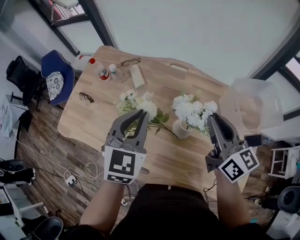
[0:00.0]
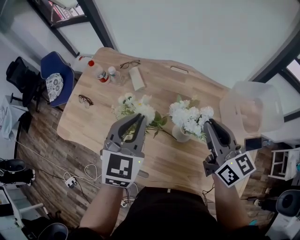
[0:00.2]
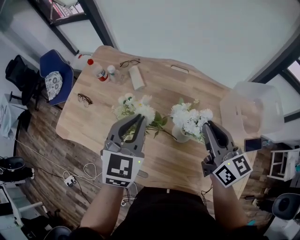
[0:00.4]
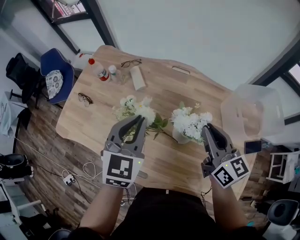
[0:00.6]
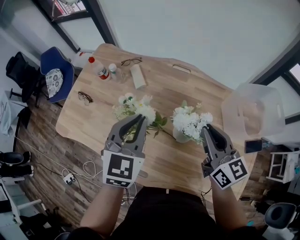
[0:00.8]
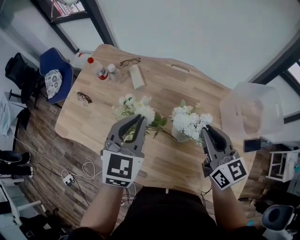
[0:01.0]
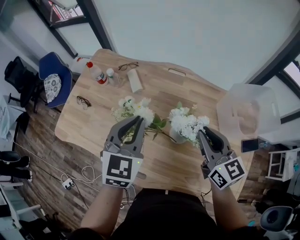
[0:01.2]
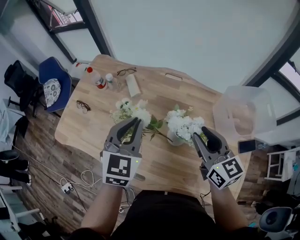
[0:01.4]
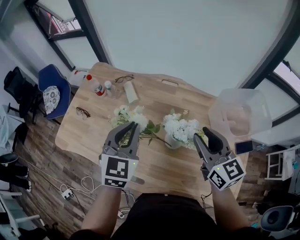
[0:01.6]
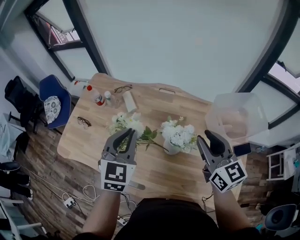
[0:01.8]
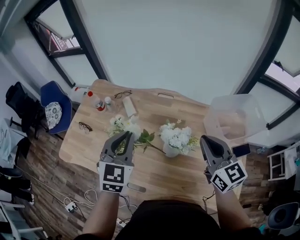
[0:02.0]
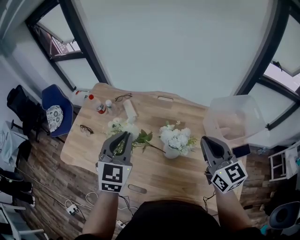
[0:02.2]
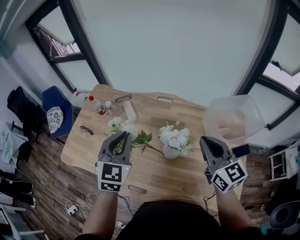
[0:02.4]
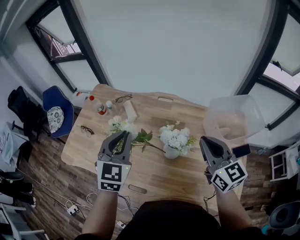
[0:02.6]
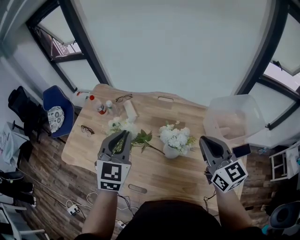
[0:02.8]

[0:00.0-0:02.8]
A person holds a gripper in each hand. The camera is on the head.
0.0 to 1.4 s: The grippers make only small movements.
1.4 to 2.8 s: The two grippers go roughly 5 cm upward. The right gripper closes.

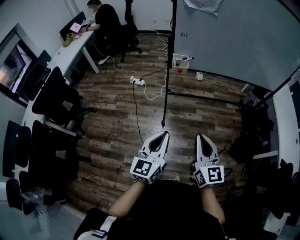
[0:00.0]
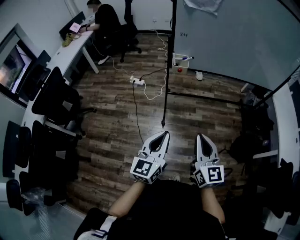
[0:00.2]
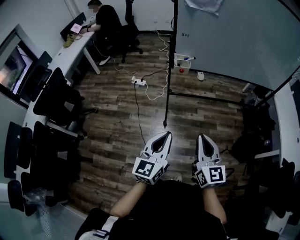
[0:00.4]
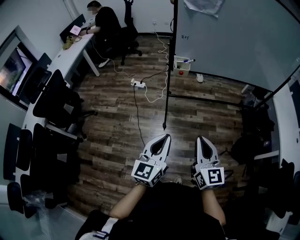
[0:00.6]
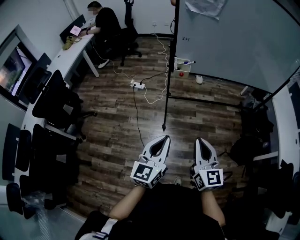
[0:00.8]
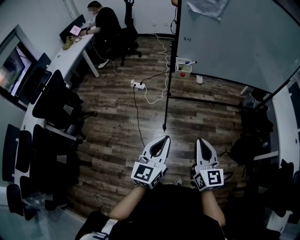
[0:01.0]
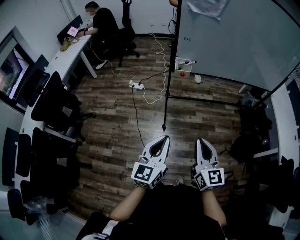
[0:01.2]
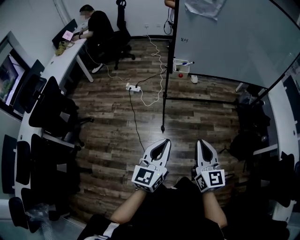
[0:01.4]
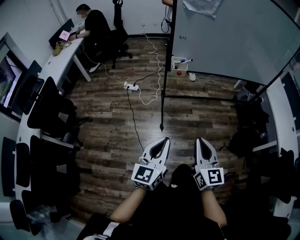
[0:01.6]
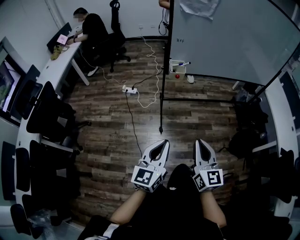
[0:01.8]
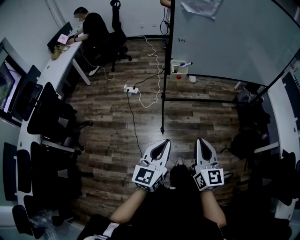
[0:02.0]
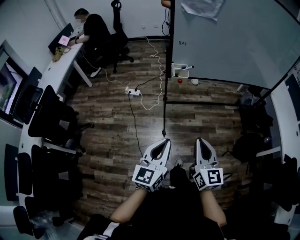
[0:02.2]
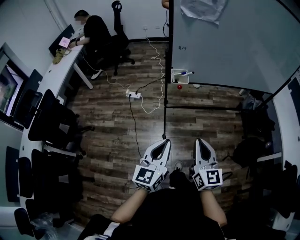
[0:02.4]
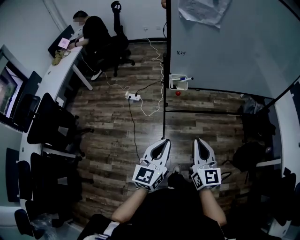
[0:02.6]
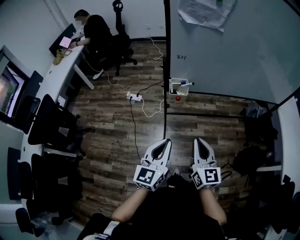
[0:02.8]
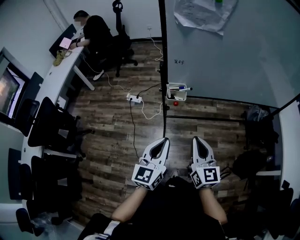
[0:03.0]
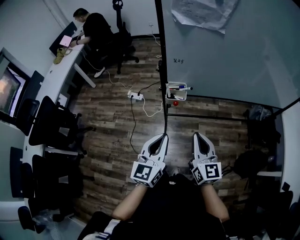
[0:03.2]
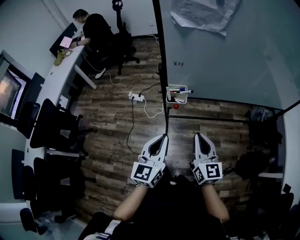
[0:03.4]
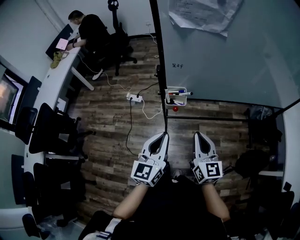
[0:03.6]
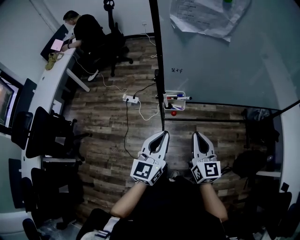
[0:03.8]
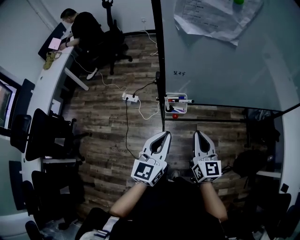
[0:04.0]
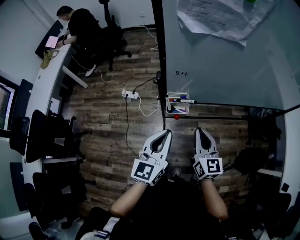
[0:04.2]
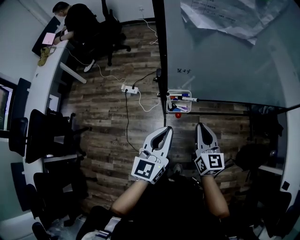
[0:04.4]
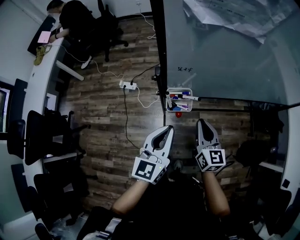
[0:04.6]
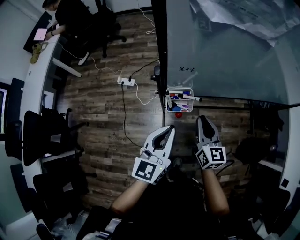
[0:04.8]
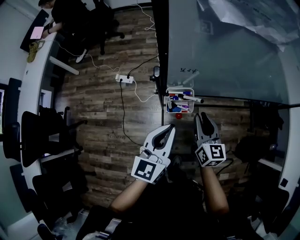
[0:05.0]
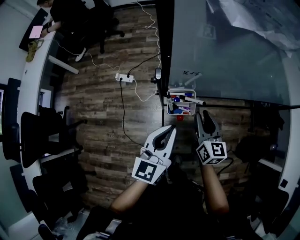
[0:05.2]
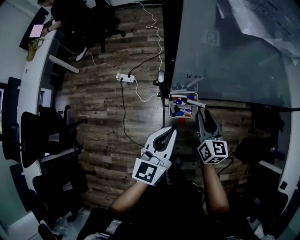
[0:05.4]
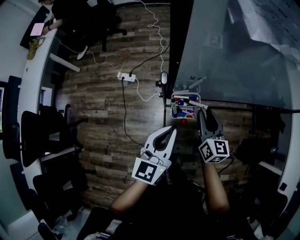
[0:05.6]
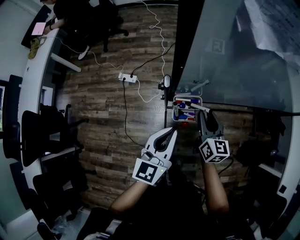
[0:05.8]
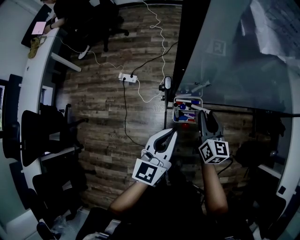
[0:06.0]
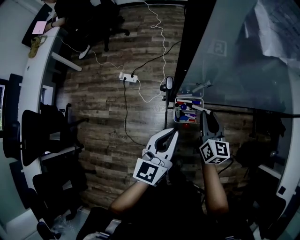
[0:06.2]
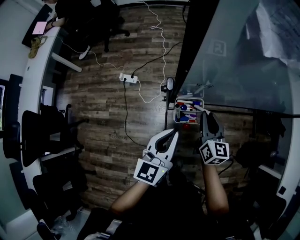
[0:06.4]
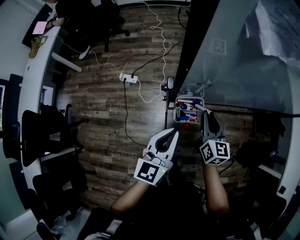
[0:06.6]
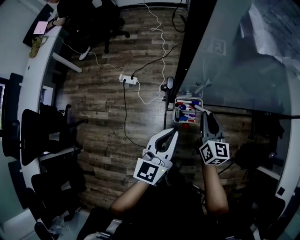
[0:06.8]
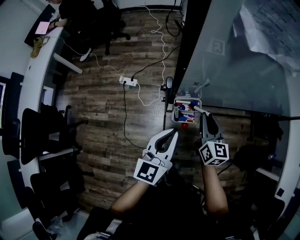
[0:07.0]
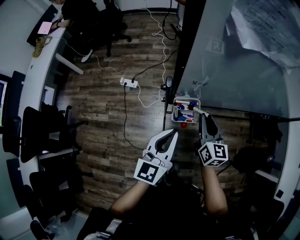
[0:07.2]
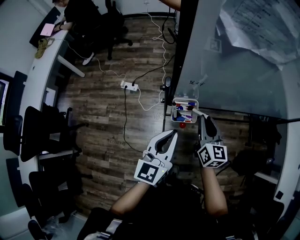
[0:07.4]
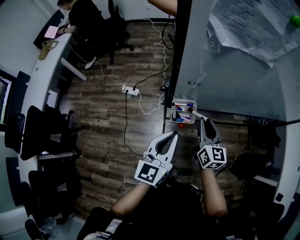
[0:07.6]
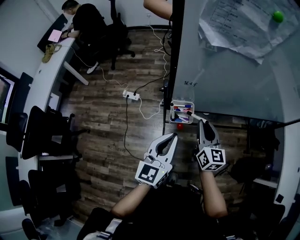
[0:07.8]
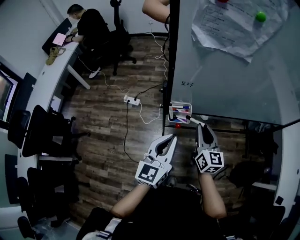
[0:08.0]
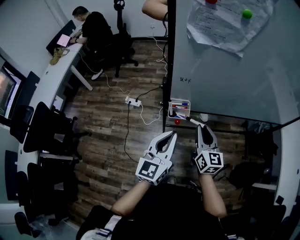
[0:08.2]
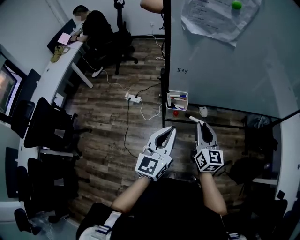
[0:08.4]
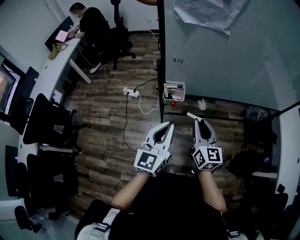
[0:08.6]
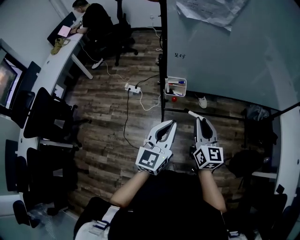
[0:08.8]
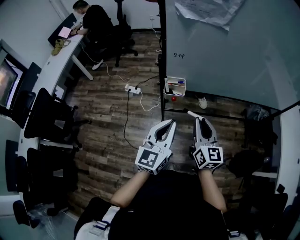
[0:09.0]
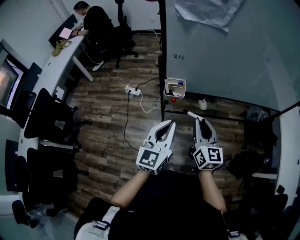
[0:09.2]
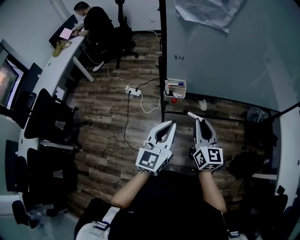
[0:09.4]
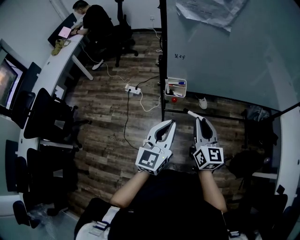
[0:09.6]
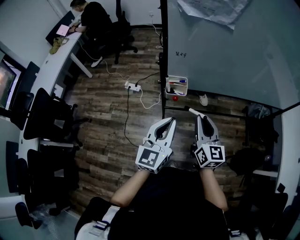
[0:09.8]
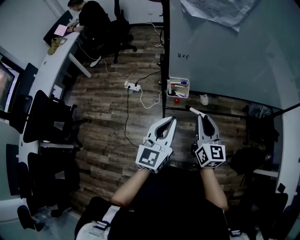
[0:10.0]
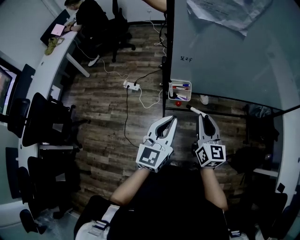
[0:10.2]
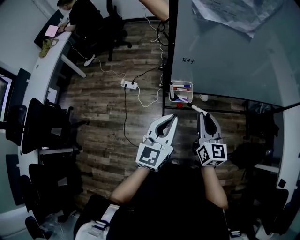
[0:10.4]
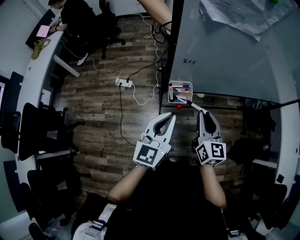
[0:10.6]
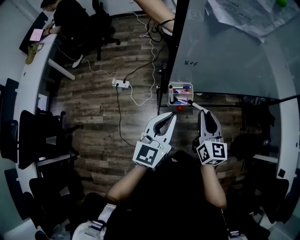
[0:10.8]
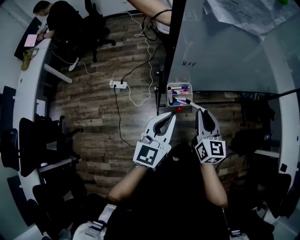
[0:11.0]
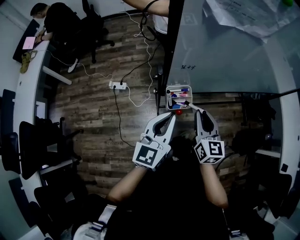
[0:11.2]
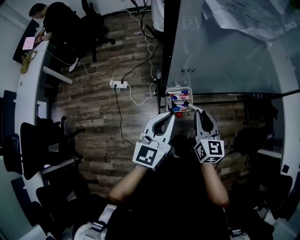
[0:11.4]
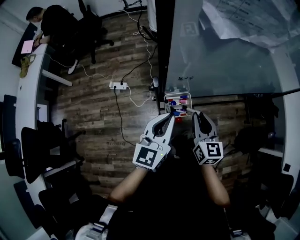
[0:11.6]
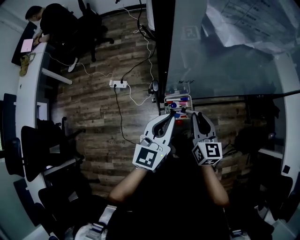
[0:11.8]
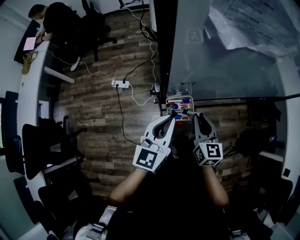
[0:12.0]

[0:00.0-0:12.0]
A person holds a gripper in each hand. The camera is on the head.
0.0 to 1.6 s: Both grippers travel together to the left, some 5 cm.
1.6 to 3.0 s: Both grippers move forward, about 25 cm.
3.0 to 4.4 s: Both grippers move forward, roughly 20 cm.
4.4 to 6.0 s: The left gripper moves forward and downward, some 10 cm. The right gripper heads forward and downward, covering some 15 cm, and opens.
6.0 to 7.6 s: The left gripper moves some 5 cm, while the right gripper shifts some 5 cm upward.
7.6 to 9.0 s: The right gripper is displaced backward by approximately 15 cm. Meanwhile the left gripper goes some 15 cm backward and to the right.
9.0 to 10.4 s: The two grippers go approximately 10 cm forward.
10.4 to 12.0 s: The left gripper is displaced forward by approximately 10 cm, while the right gripper moves forward and downward, approximately 10 cm.

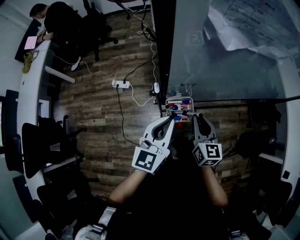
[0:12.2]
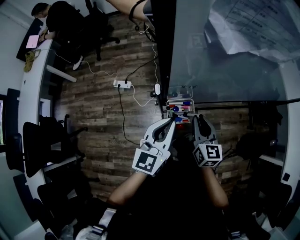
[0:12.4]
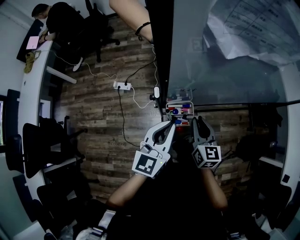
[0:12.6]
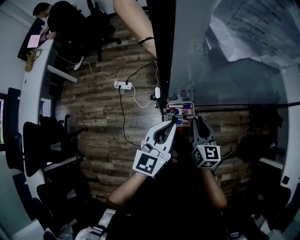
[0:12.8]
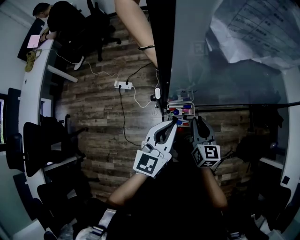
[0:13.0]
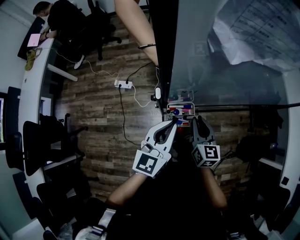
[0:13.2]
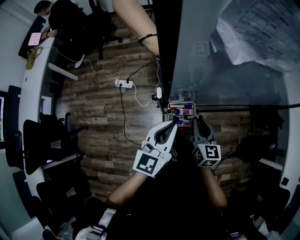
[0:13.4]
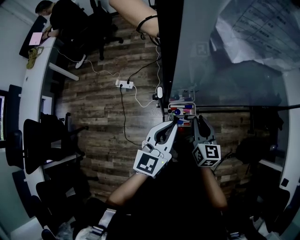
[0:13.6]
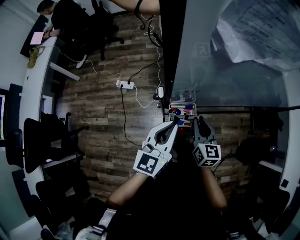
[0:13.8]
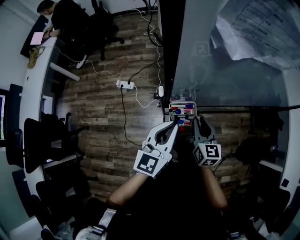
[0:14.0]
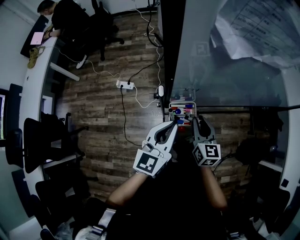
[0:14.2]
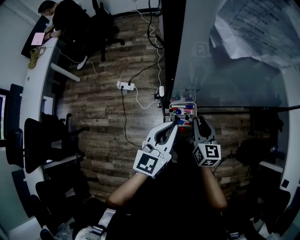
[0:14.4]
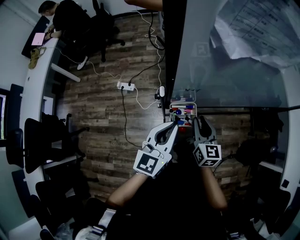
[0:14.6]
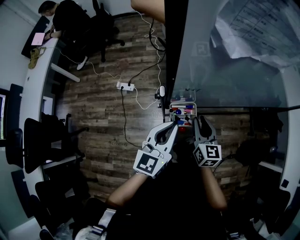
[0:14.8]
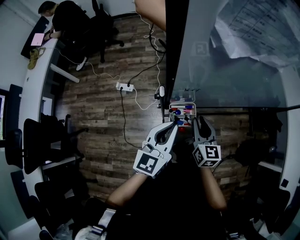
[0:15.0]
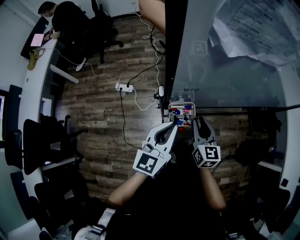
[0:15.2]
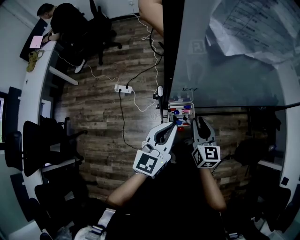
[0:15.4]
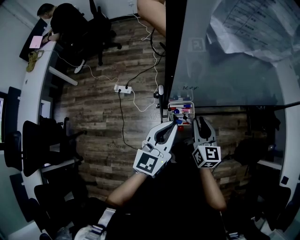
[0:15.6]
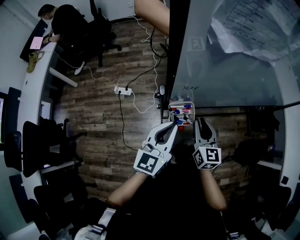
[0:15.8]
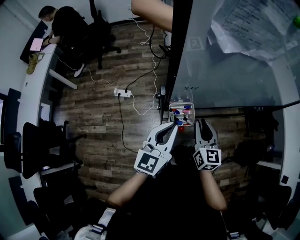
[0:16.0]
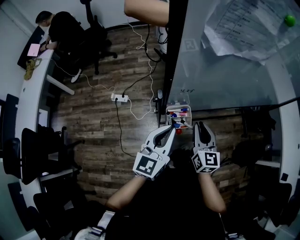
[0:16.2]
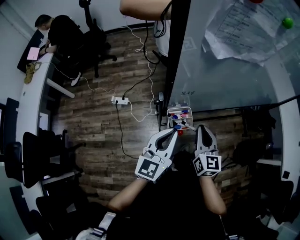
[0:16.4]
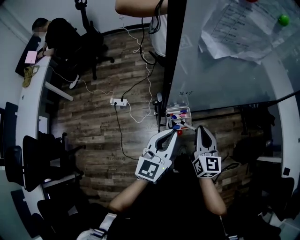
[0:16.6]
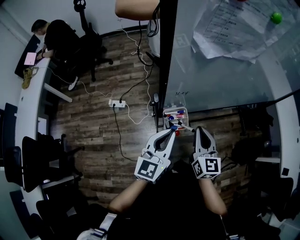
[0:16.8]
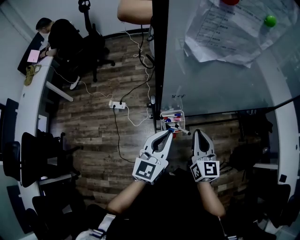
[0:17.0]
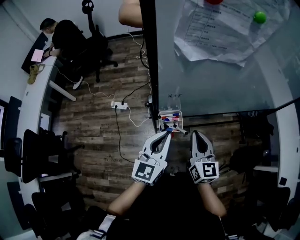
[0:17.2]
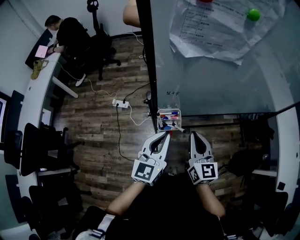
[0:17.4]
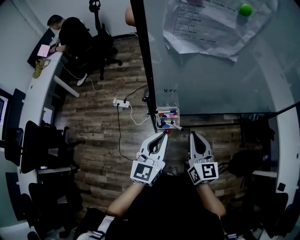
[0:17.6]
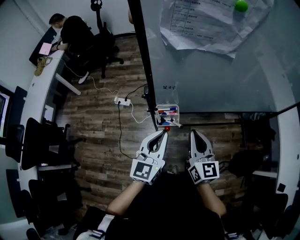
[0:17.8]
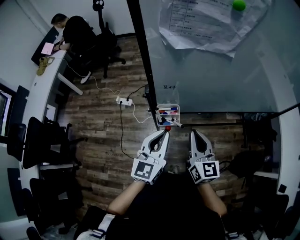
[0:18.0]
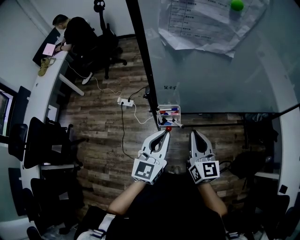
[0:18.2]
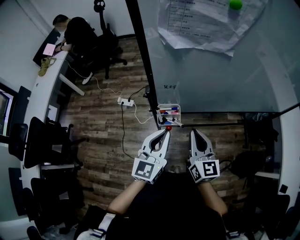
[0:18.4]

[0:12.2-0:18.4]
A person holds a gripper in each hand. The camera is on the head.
12.2 to 15.4 s: There are only small adjustments of the grippers.
15.4 to 16.8 s: The right gripper shifts about 5 cm upward.
16.8 to 18.4 s: The left gripper moves about 5 cm, while the right gripper ends up roughly 5 cm from where it was.

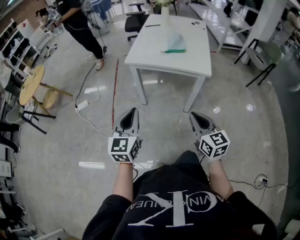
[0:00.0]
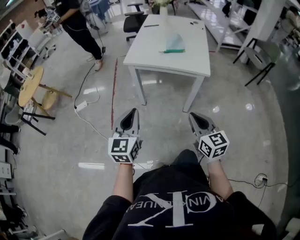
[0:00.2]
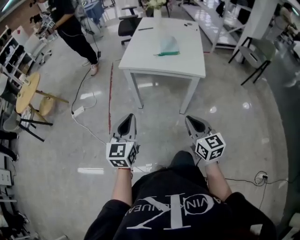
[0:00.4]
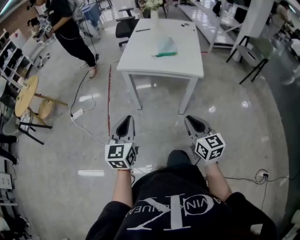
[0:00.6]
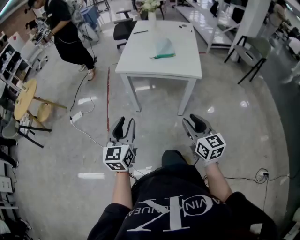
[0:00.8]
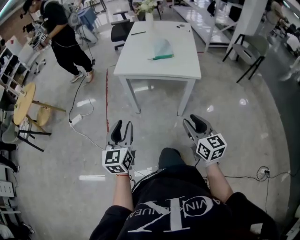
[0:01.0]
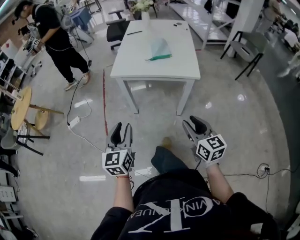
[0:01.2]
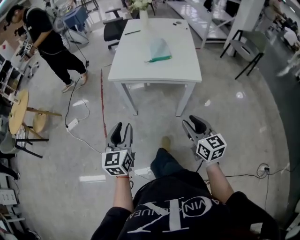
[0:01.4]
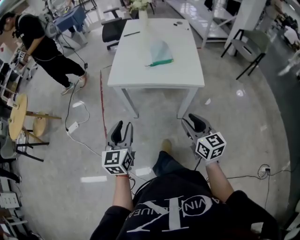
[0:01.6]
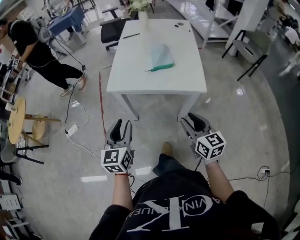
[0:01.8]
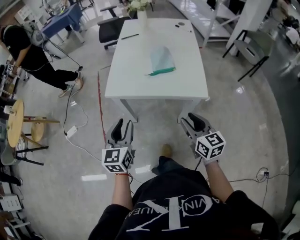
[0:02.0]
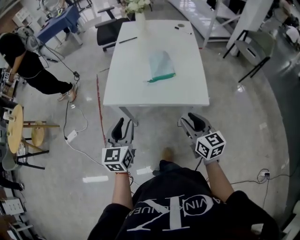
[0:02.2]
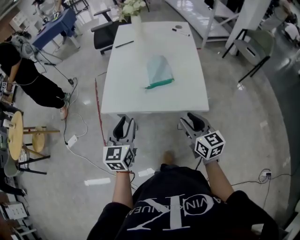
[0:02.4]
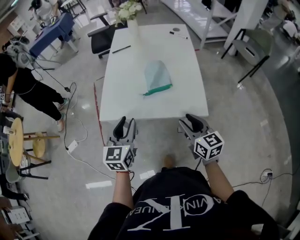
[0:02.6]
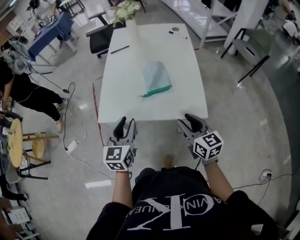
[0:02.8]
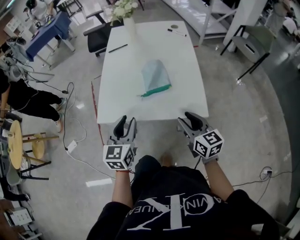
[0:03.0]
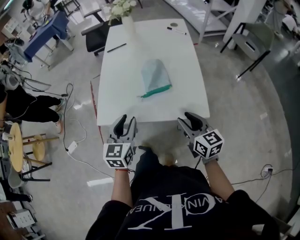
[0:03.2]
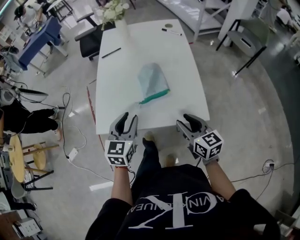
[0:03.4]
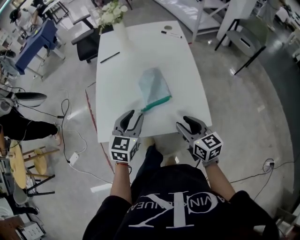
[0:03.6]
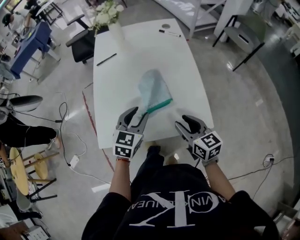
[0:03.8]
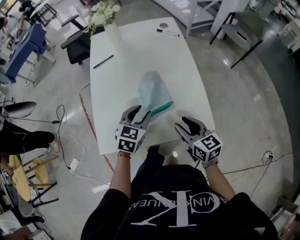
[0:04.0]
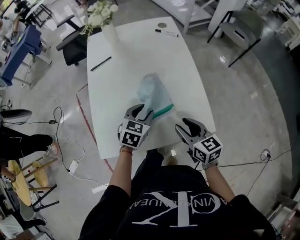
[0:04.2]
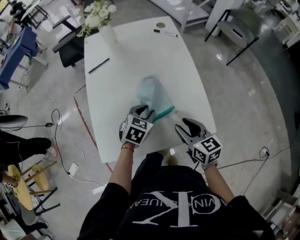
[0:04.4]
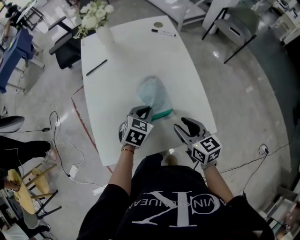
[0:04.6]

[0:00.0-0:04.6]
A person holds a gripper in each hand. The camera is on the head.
0.0 to 1.6 s: The two grippers go some 10 cm forward. The left gripper opens up. Meanwhile the right gripper opens its fingers.
1.6 to 3.0 s: The two grippers go some 25 cm forward.
3.0 to 4.6 s: The right gripper travels forward by approximately 15 cm. The left gripper travels forward and downward by roughly 25 cm, changes its angle by roughly 40 degrees, and closes its fingers.
